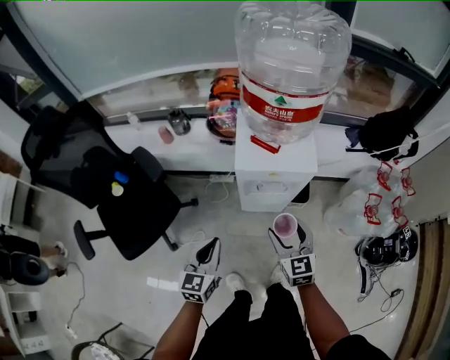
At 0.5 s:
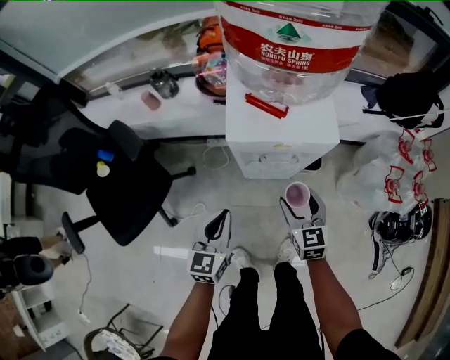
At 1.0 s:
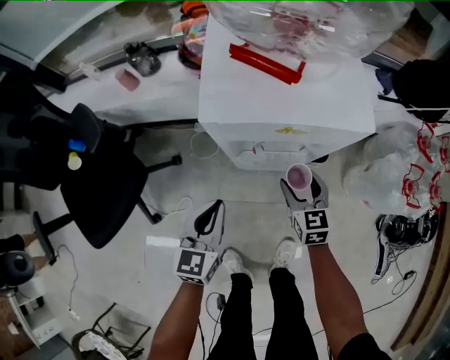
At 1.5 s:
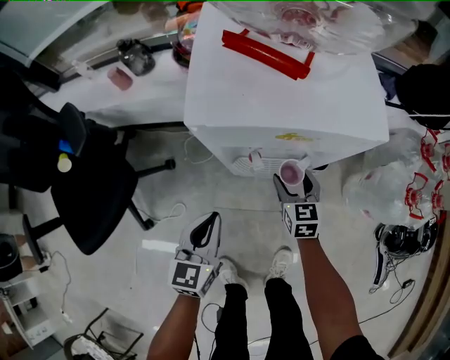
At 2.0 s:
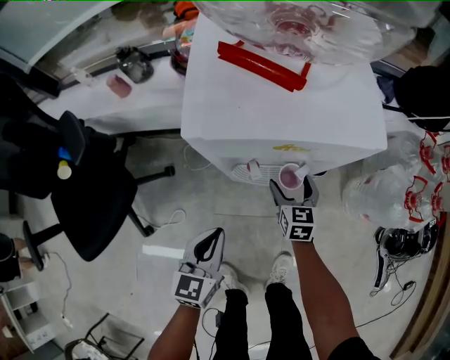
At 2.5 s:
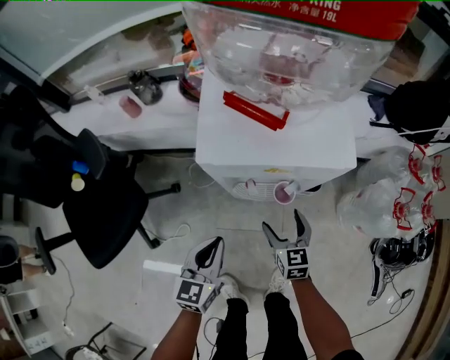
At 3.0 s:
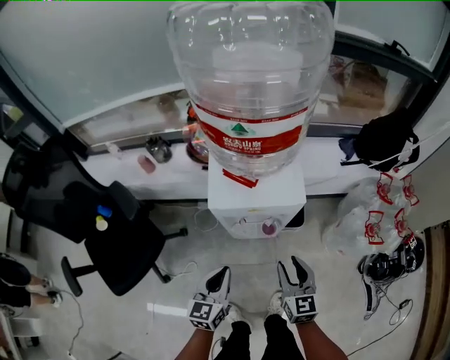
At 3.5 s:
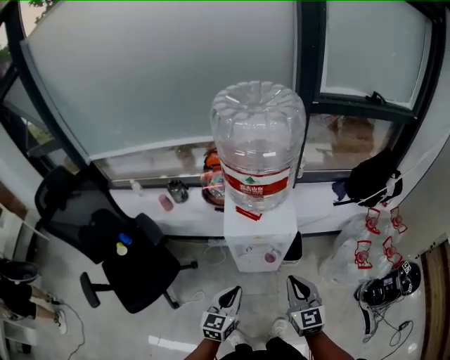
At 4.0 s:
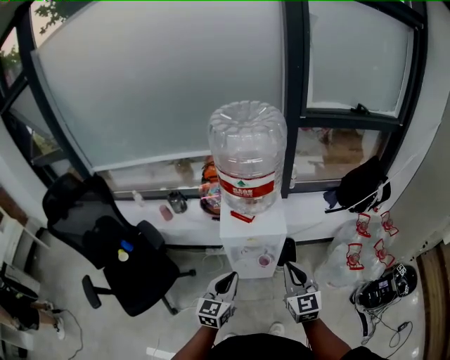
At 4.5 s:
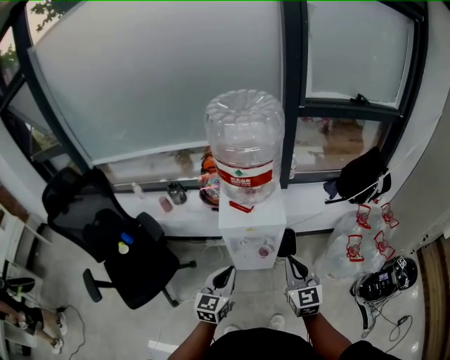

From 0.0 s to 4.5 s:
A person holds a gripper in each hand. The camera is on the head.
From 0.0 s to 2.0 s: The right gripper heads downward and forward, covering roughly 40 cm. Meanwhile the left gripper is displaced downward by some 25 cm.
From 2.0 s to 4.5 s: The grippers both shift upward by some 40 cm. The right gripper changes its angle by roughly 20 degrees, and closes its fingers.

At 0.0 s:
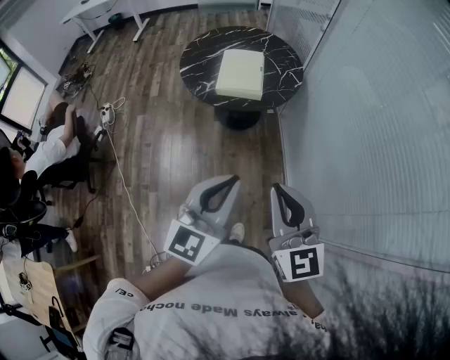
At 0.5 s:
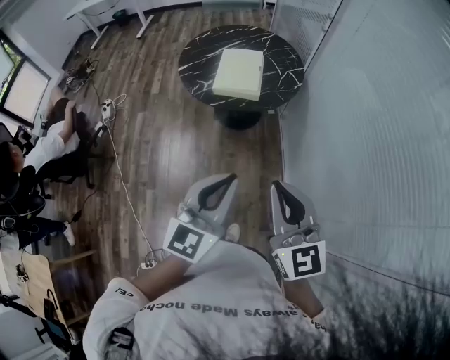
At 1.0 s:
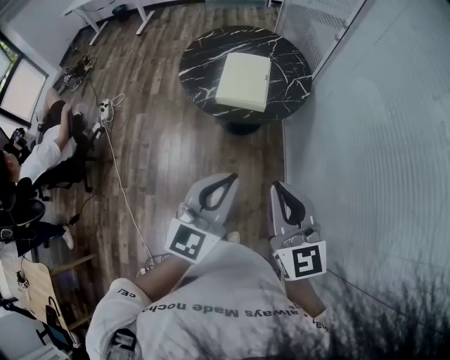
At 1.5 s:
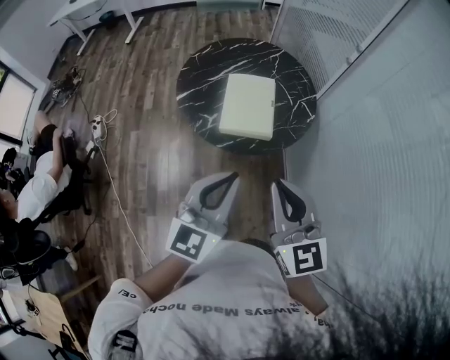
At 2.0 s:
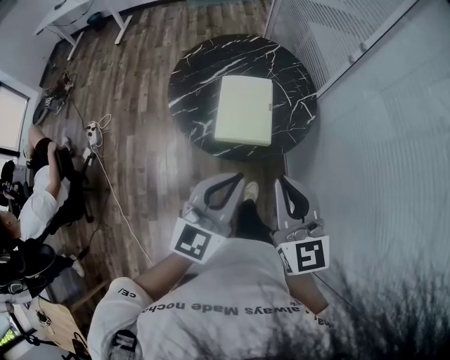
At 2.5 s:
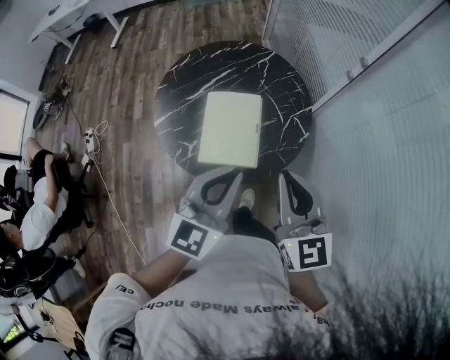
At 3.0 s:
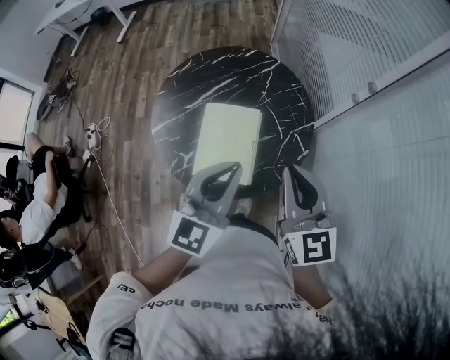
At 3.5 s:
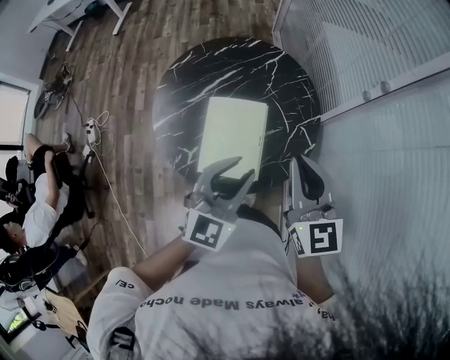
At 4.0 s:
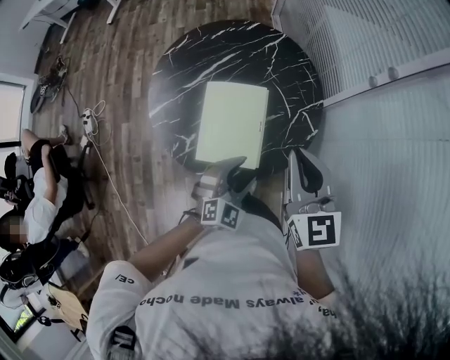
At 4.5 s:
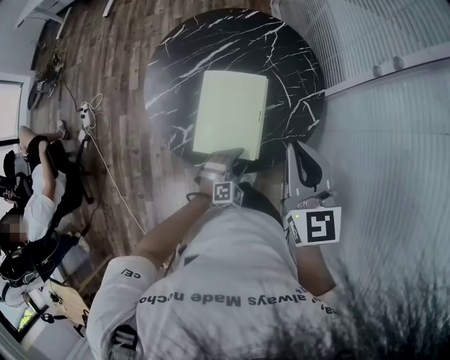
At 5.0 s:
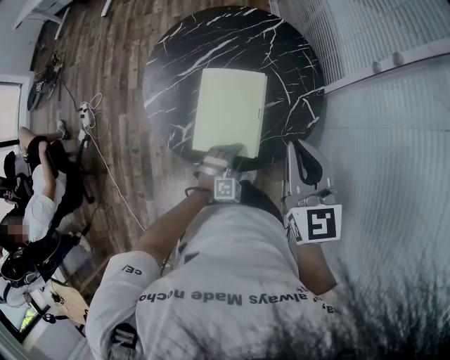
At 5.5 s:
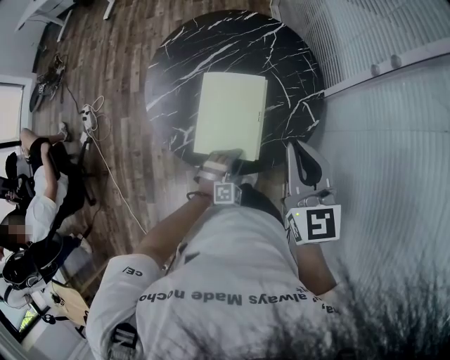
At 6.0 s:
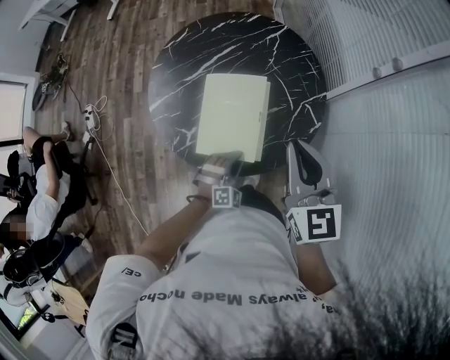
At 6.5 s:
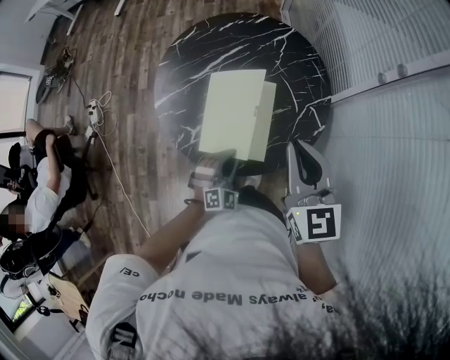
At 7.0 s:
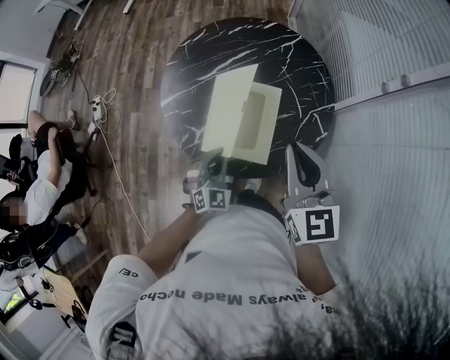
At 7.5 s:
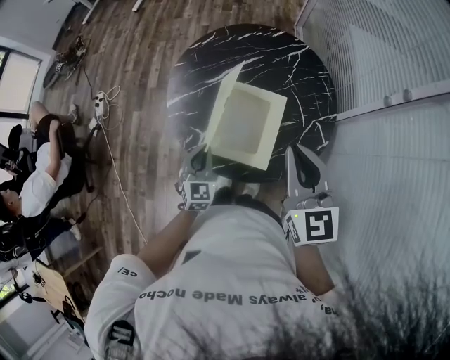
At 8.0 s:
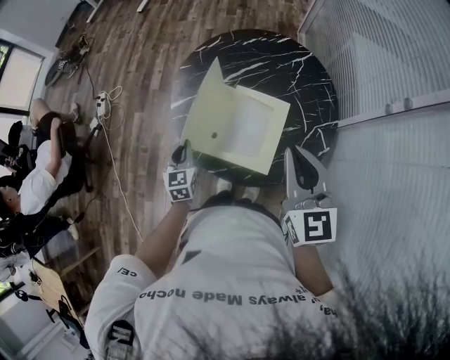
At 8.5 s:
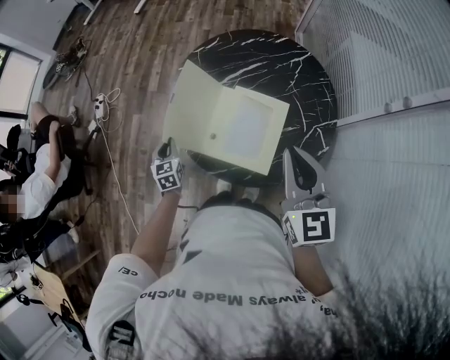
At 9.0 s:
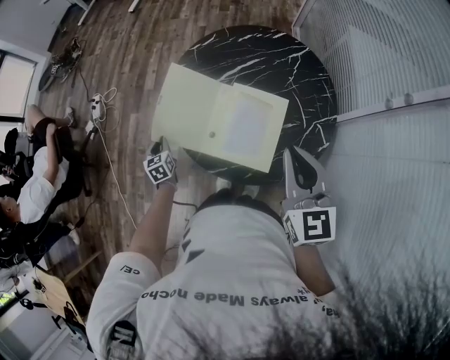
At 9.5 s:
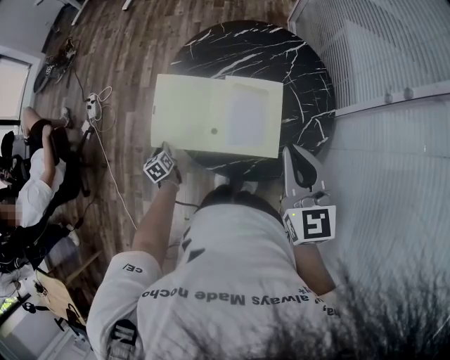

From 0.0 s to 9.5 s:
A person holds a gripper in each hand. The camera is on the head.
From 0.0 s to 2.0 s: The two grippers go some 40 cm forward.
From 2.0 s to 4.0 s: The right gripper moves forward, approximately 30 cm. The left gripper travels forward, downward and to the right by some 35 cm, swivels about 40 degrees, and opens.
From 4.0 s to 5.5 s: The left gripper goes approximately 15 cm downward, swivels roughly 30 degrees, and closes.
From 5.5 s to 7.5 s: The right gripper moves to the left, approximately 5 cm. Meanwhile the left gripper goes roughly 20 cm to the left and upward, rolls counterclockwise, seen from behind, by about 50 degrees, and closes.
From 7.5 s to 9.5 s: The left gripper shifts some 30 cm to the left and downward, and rotates around the line of its fingers by some 50 degrees, counterclockwise from behind.

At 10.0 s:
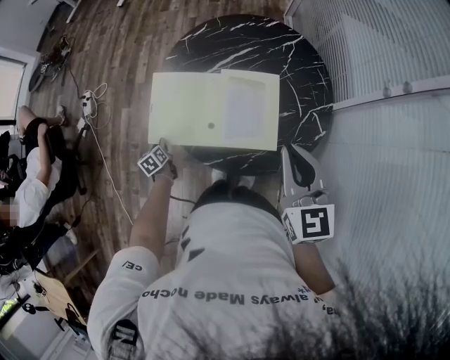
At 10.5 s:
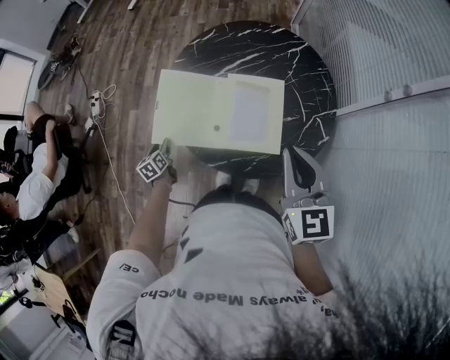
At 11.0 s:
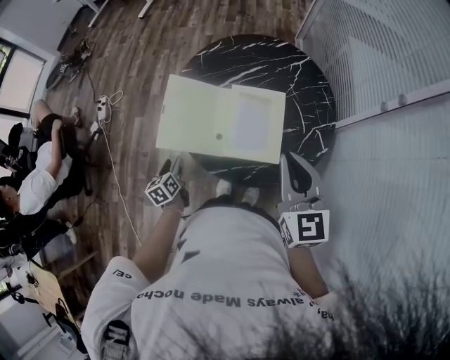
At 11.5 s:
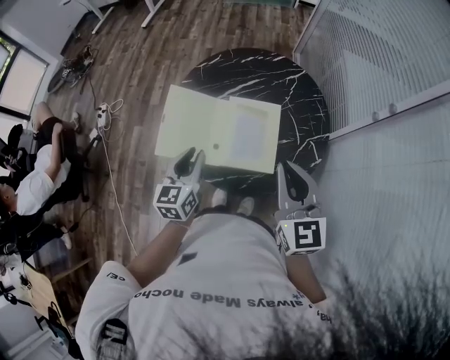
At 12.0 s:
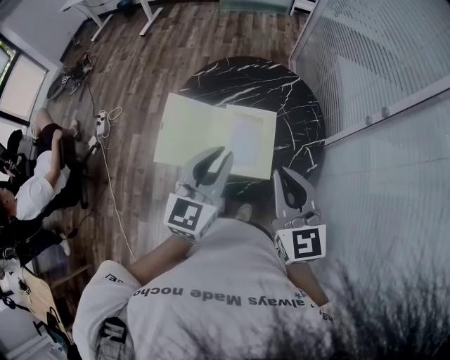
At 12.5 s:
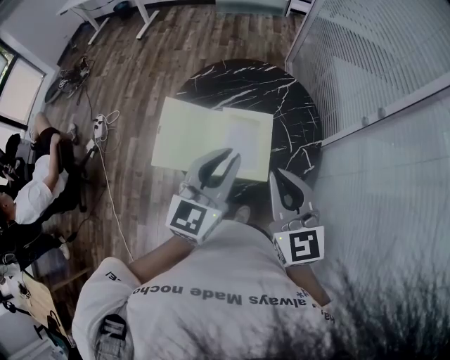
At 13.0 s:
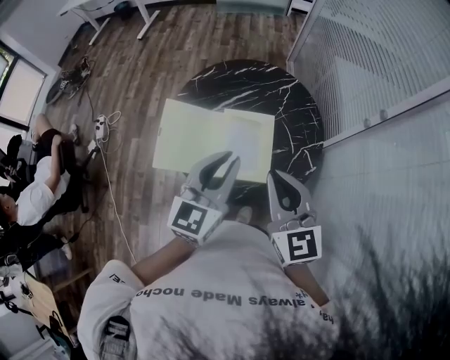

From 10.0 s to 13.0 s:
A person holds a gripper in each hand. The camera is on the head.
From 10.0 s to 11.5 s: The right gripper shifts by about 5 cm. Meanwhile the left gripper travels upward and to the right by about 40 cm, angles its fingers upward, by roughly 30 degrees, and opens, then closes again.
From 11.5 s to 13.0 s: The left gripper moves upward and to the right, roughly 20 cm, and swivels about 20 degrees.

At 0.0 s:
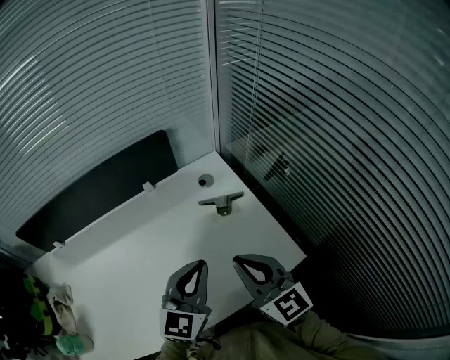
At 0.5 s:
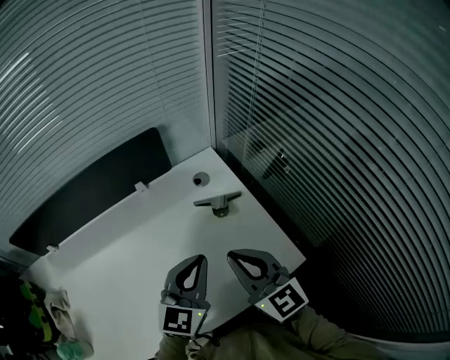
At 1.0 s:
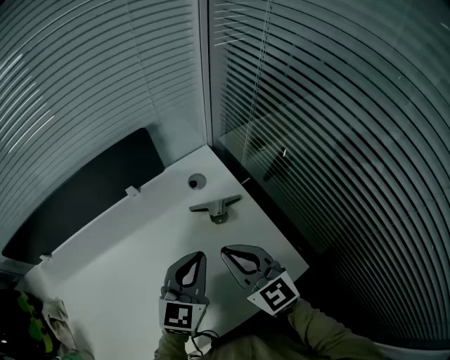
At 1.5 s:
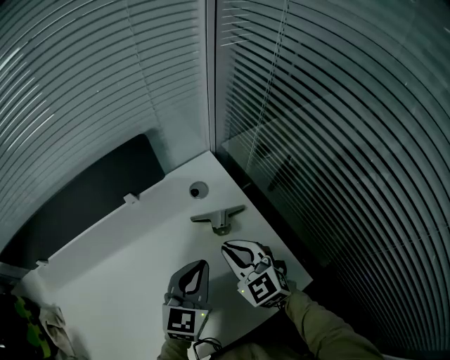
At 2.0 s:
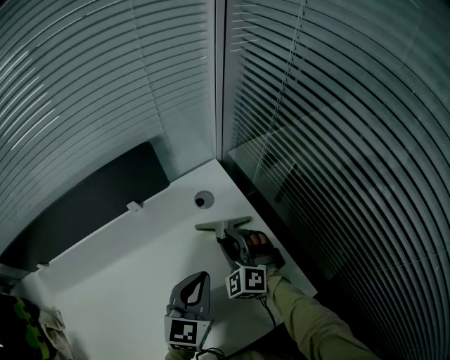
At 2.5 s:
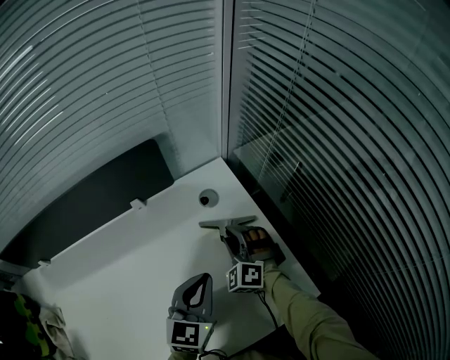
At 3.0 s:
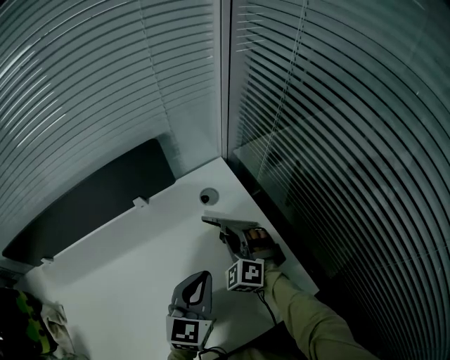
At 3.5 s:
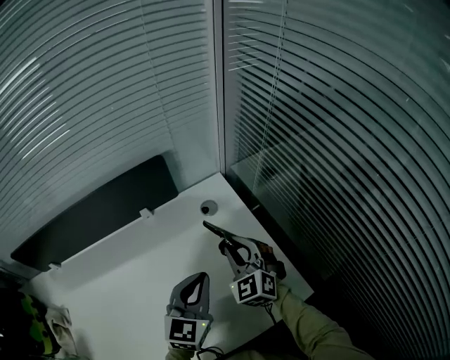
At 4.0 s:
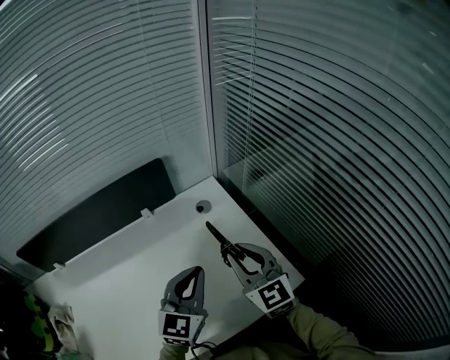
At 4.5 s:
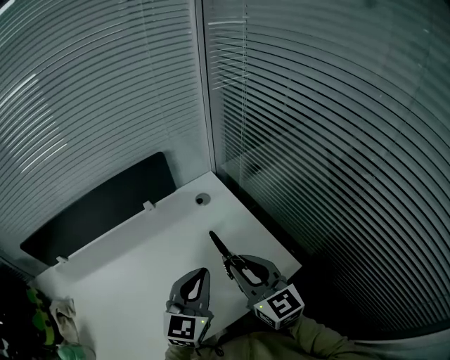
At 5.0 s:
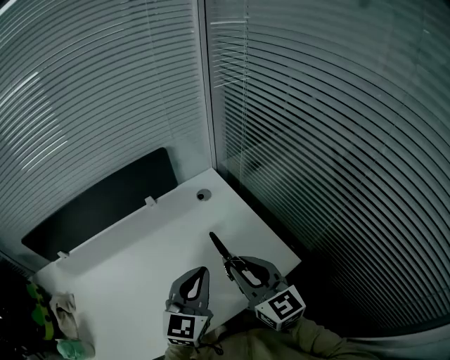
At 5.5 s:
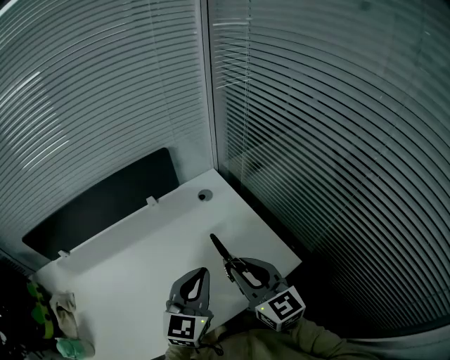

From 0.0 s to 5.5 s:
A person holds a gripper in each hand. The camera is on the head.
From 0.0 s to 2.0 s: The left gripper moves forward and downward, roughly 15 cm. Meanwhile the right gripper heads forward and downward, covering roughly 30 cm, turns by some 60 degrees, and opens up.
From 2.0 s to 3.5 s: The right gripper shifts some 10 cm upward, and changes its angle by approximately 20 degrees.
From 3.5 s to 5.5 s: The right gripper is displaced backward and upward by about 25 cm, and swivels roughly 40 degrees; the left gripper moves backward and upward, some 15 cm.

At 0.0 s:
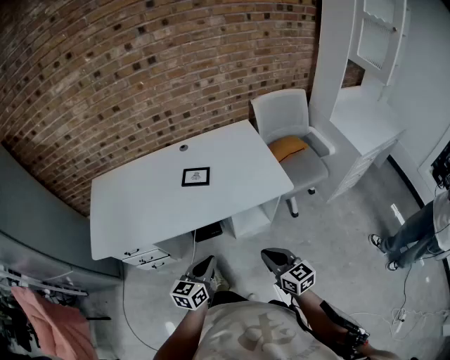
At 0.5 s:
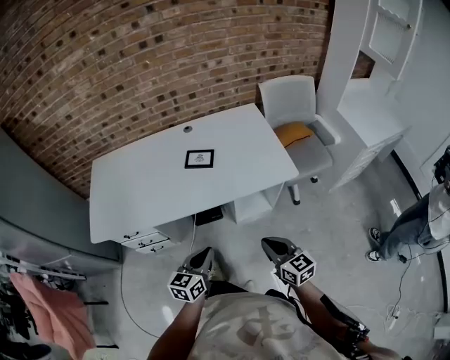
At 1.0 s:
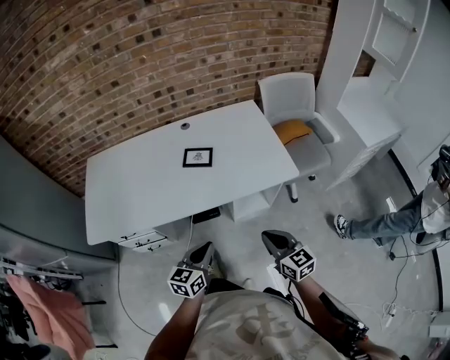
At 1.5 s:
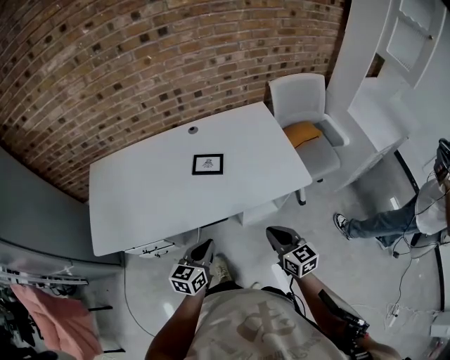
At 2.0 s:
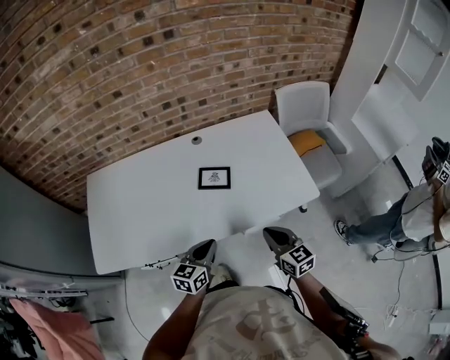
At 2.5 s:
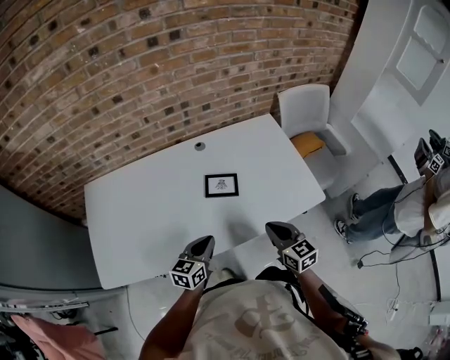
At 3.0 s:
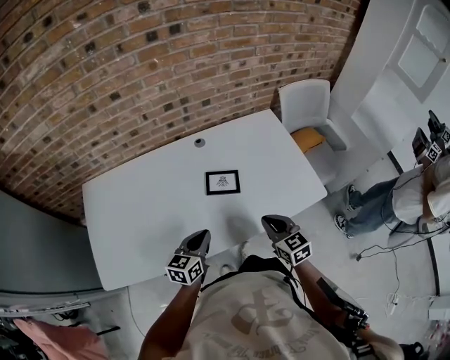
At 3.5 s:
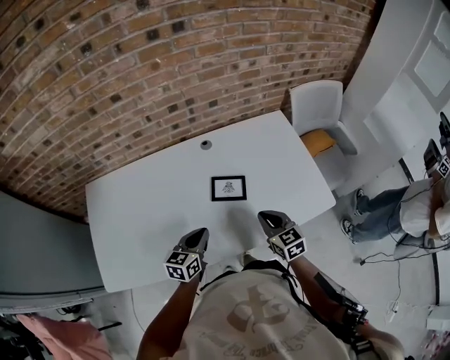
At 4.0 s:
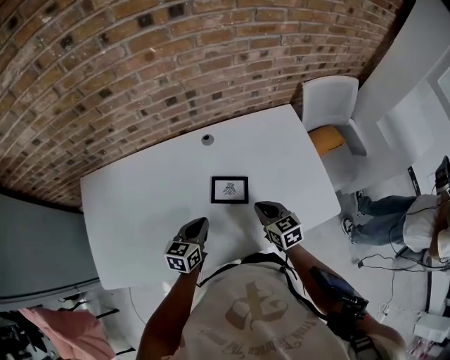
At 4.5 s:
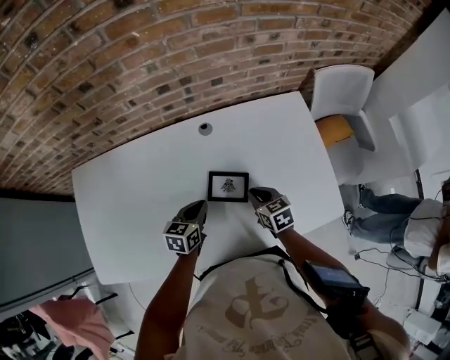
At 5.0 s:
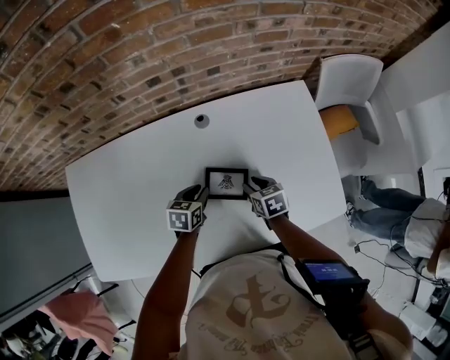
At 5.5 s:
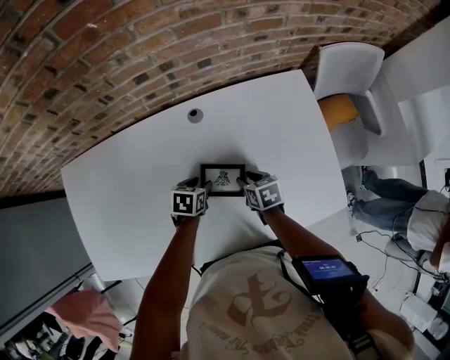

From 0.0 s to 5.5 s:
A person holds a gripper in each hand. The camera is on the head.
From 0.0 s to 2.0 s: Both grippers travel together forward and to the left, roughly 20 cm.
From 2.0 s to 3.5 s: Both grippers move forward and to the left, about 15 cm.
From 3.5 s to 5.5 s: The grippers both shift forward and downward by approximately 25 cm. The right gripper swivels roughly 40 degrees, and opens. The left gripper tilts its fingers roughly 30 degrees downward, and opens up.
